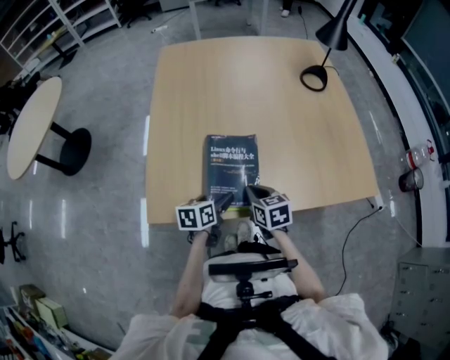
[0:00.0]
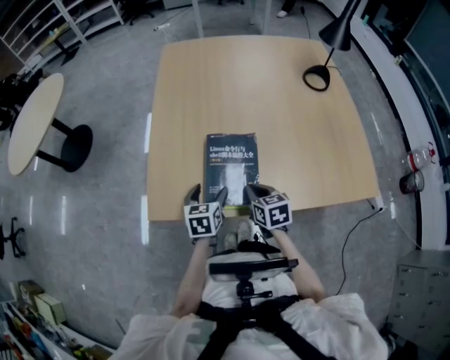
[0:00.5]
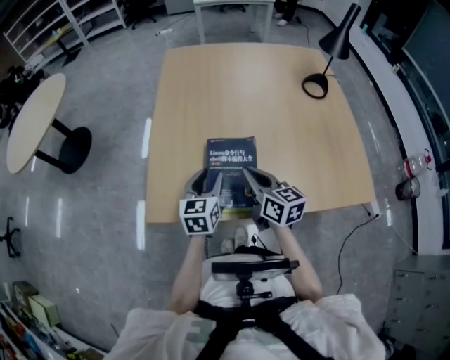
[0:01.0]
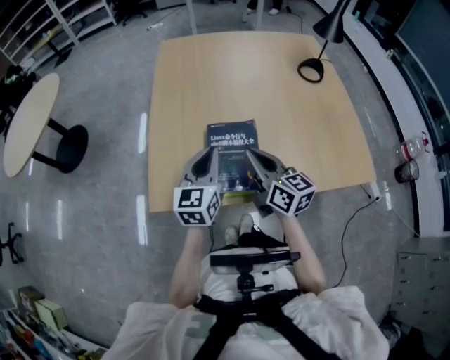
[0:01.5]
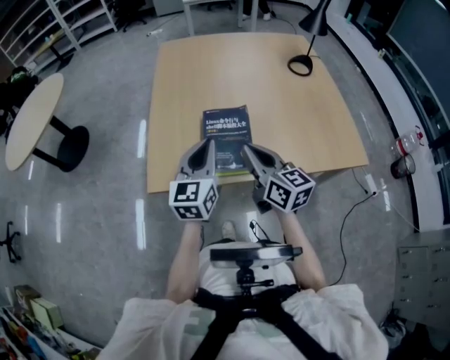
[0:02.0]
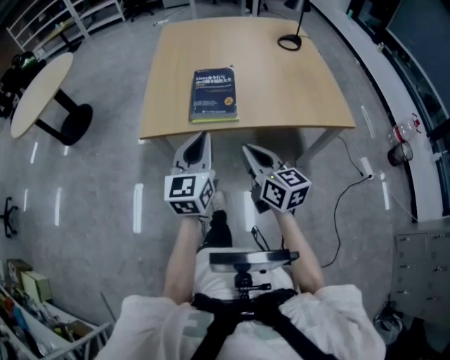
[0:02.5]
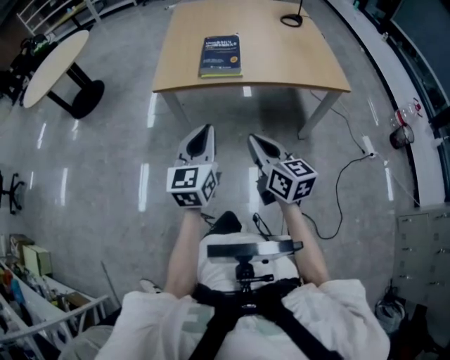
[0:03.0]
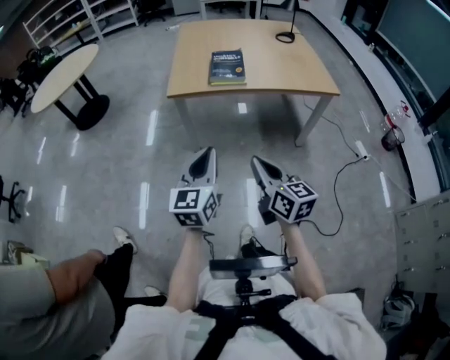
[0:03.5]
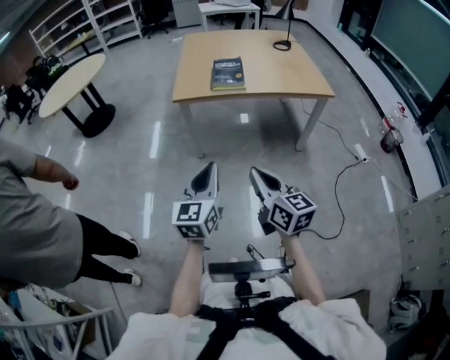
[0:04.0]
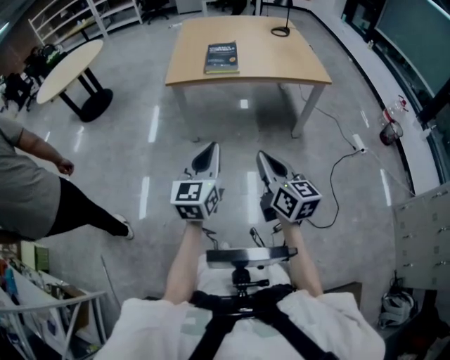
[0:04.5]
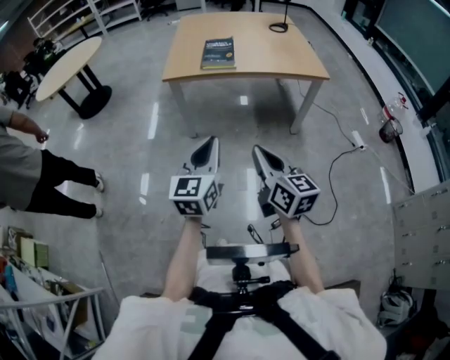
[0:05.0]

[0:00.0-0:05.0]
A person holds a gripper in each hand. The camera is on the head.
0:00.0 to 0:02.5: The grippers both shift backward and upward by approximately 35 cm. The right gripper points its fingers roughly 30 degrees further upward. The left gripper tips its fingers upward by approximately 30 degrees, and closes its fingers.
0:02.5 to 0:05.0: The pair of grippers is taken backward, about 40 cm.

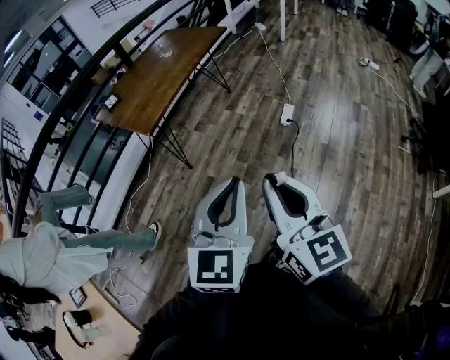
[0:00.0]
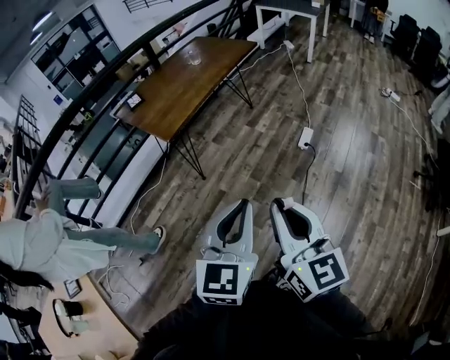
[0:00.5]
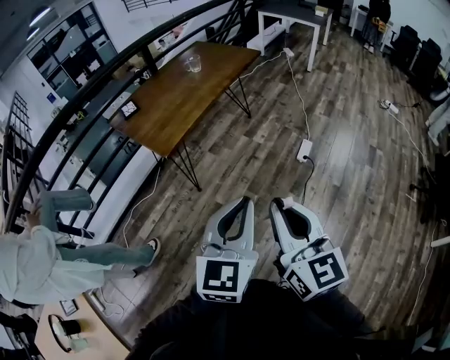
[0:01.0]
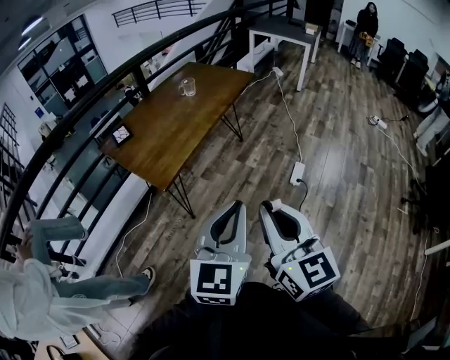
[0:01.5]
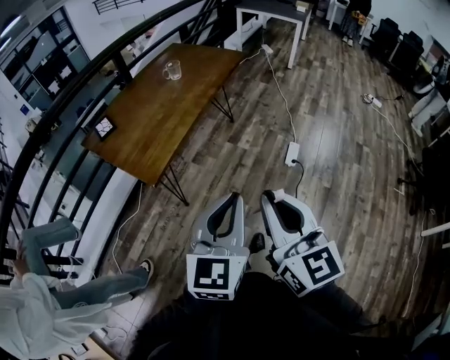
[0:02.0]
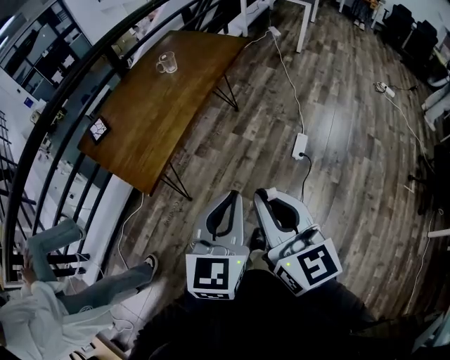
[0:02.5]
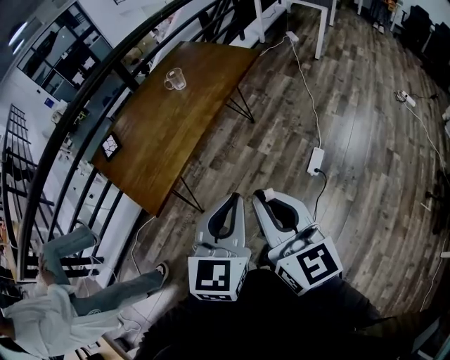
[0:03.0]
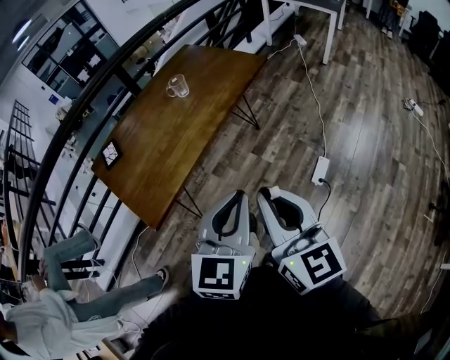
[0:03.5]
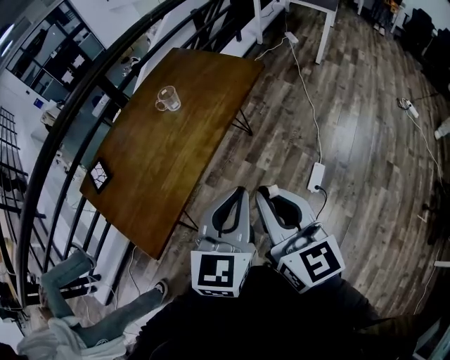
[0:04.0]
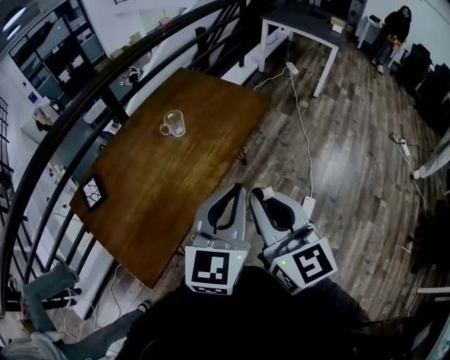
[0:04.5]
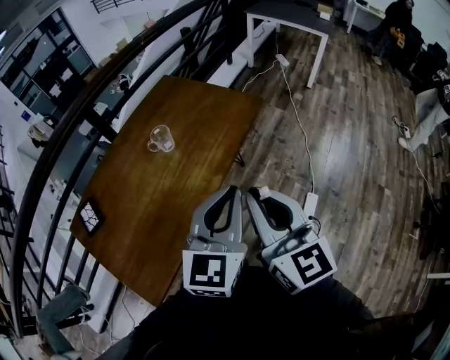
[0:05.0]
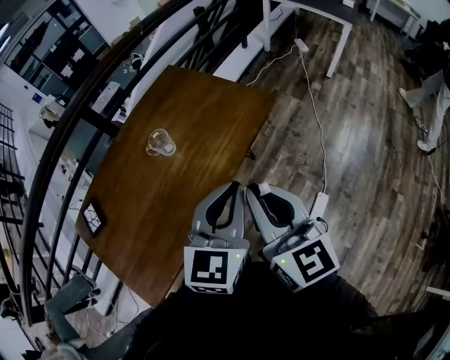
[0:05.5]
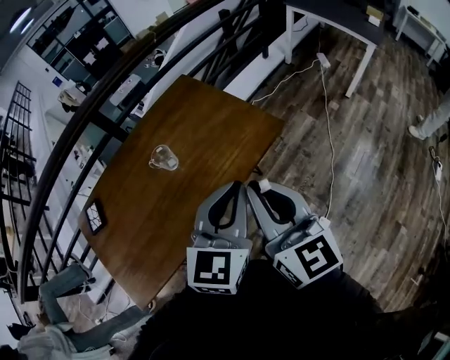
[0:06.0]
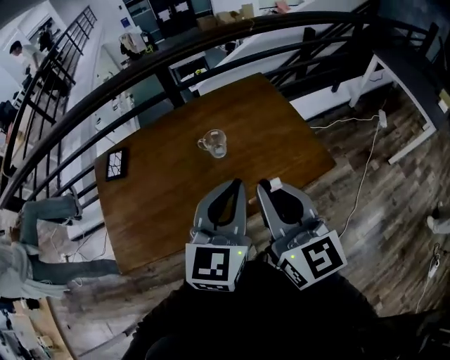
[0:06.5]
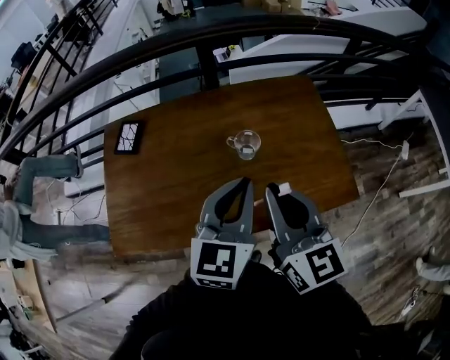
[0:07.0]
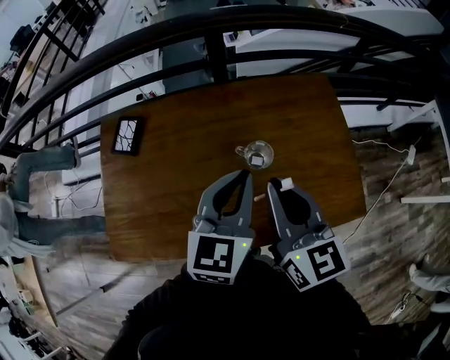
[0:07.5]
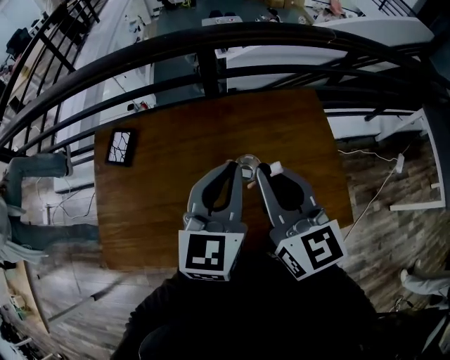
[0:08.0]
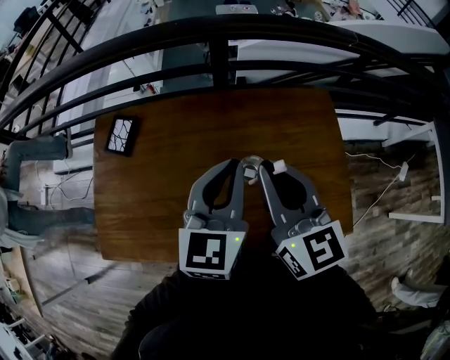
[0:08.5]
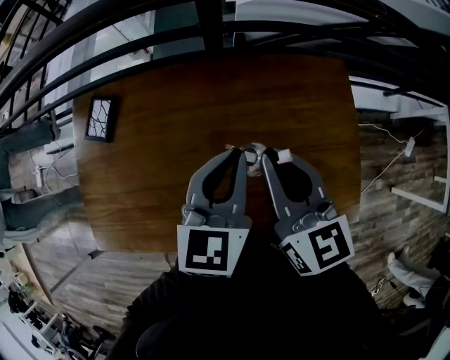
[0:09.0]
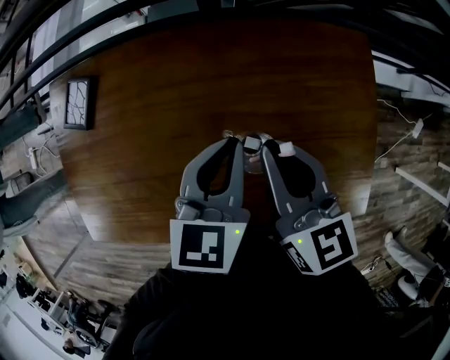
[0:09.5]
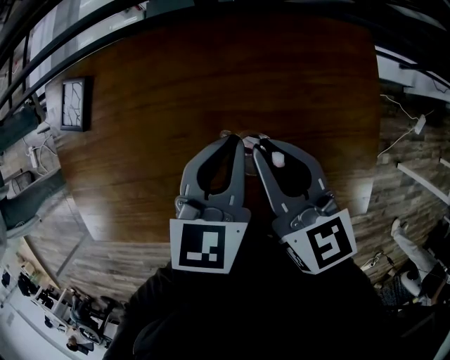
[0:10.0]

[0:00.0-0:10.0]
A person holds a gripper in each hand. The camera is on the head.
0:00.0 to 0:02.0: Both grippers move forward, roughly 25 cm.
0:02.0 to 0:04.0: The two grippers go roughly 35 cm forward.
0:04.0 to 0:06.0: The two grippers go approximately 35 cm forward.
0:06.0 to 0:08.0: The right gripper changes place by roughly 35 cm, and changes its angle by roughly 40 degrees. Meanwhile the left gripper moves about 35 cm, and rotates approximately 40 degrees.
0:08.0 to 0:10.0: Both grippers move downward and forward, some 20 cm. The left gripper turns by about 30 degrees. The right gripper turns by some 20 degrees.

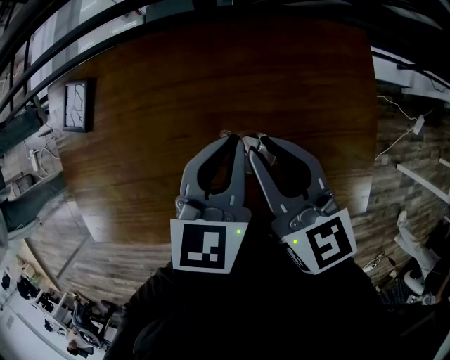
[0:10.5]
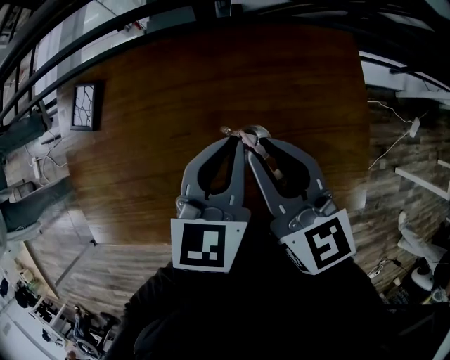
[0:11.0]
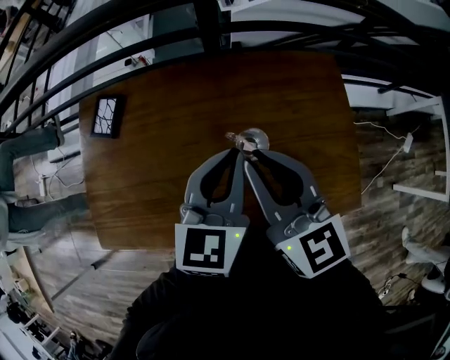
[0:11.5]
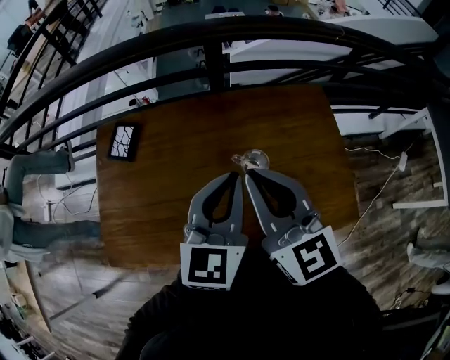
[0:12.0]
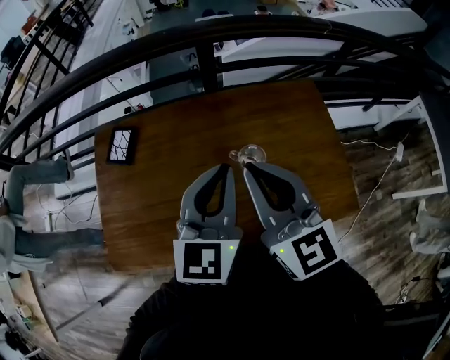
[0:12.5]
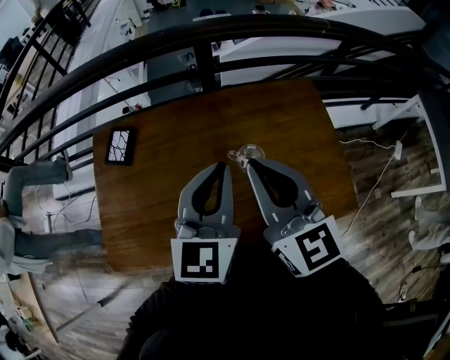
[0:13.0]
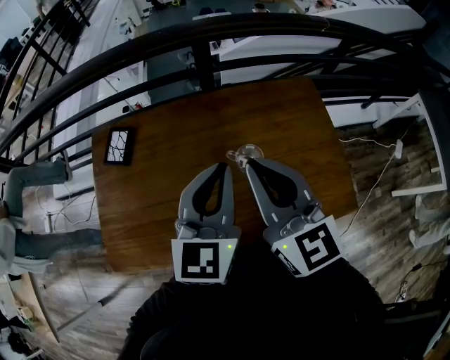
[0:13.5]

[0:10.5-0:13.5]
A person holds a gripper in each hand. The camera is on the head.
0:10.5 to 0:12.0: The left gripper goes some 20 cm upward and backward, and rotates some 20 degrees; the right gripper is displaced upward, backward and to the left by approximately 20 cm, and rotates about 20 degrees.
0:12.0 to 0:13.5: The grippers stay close to where they were, moving slightly.

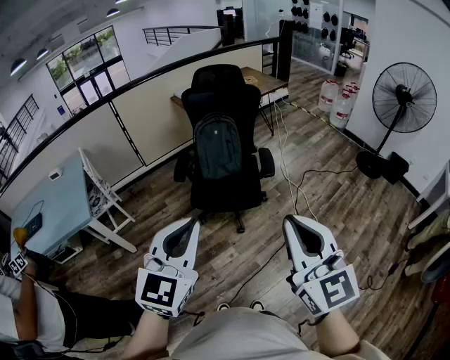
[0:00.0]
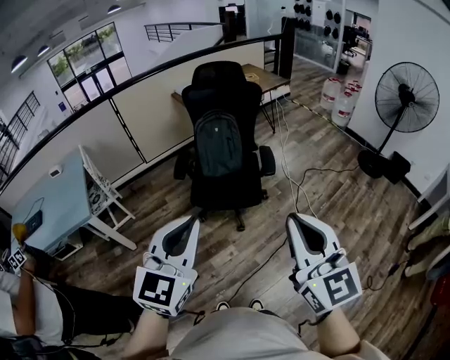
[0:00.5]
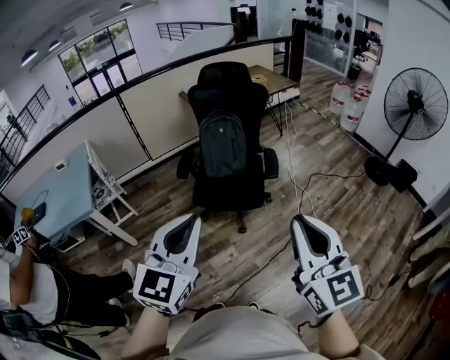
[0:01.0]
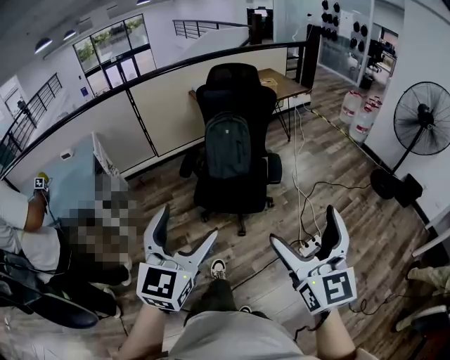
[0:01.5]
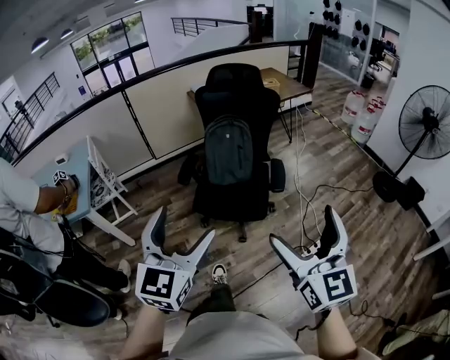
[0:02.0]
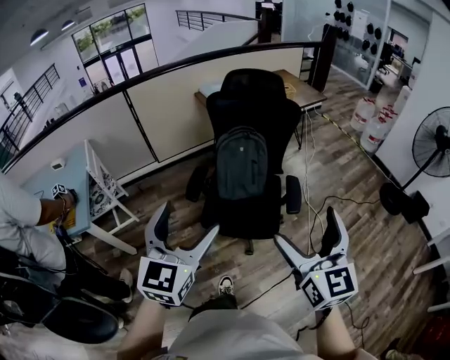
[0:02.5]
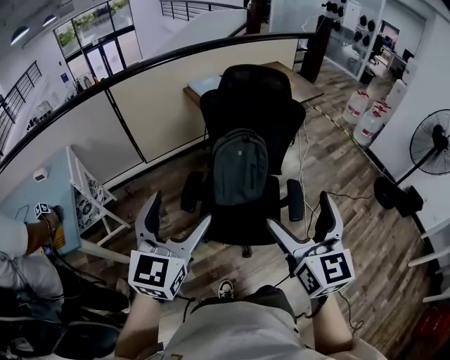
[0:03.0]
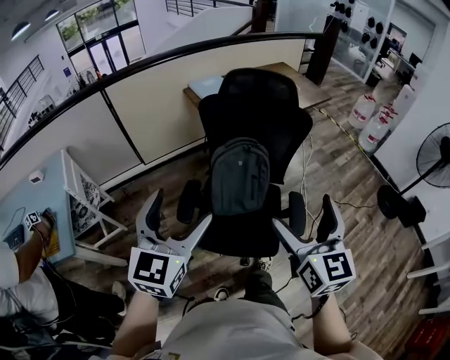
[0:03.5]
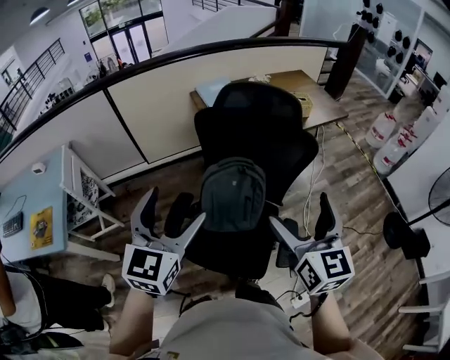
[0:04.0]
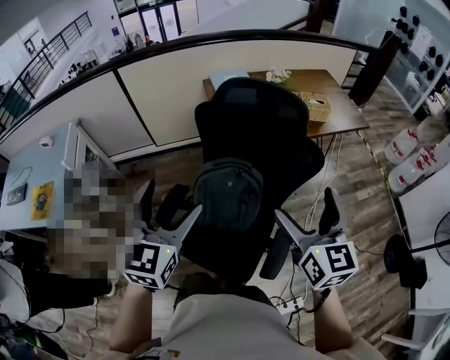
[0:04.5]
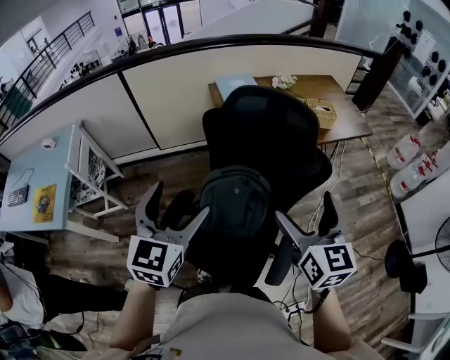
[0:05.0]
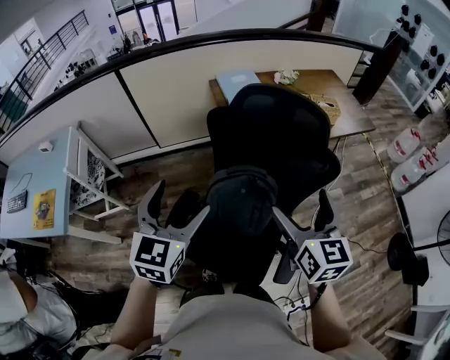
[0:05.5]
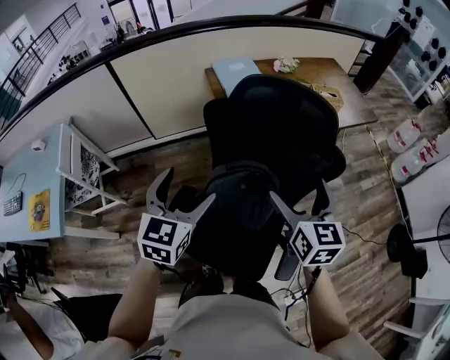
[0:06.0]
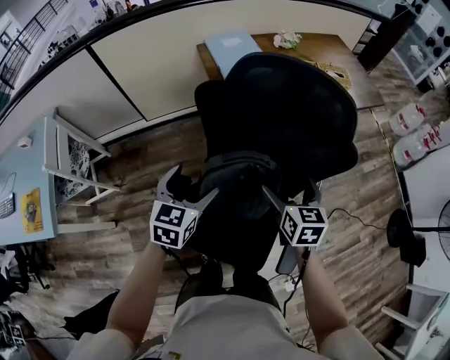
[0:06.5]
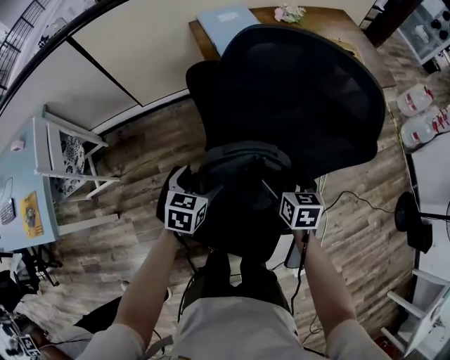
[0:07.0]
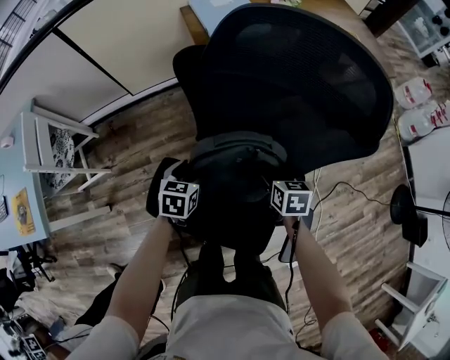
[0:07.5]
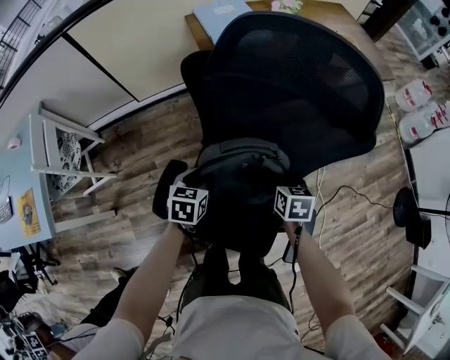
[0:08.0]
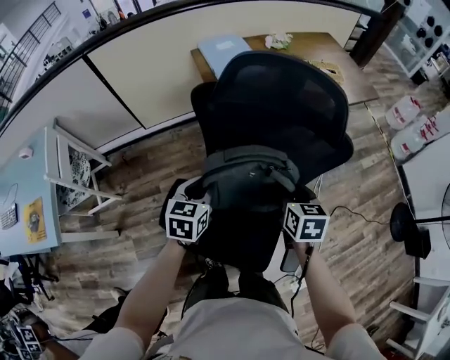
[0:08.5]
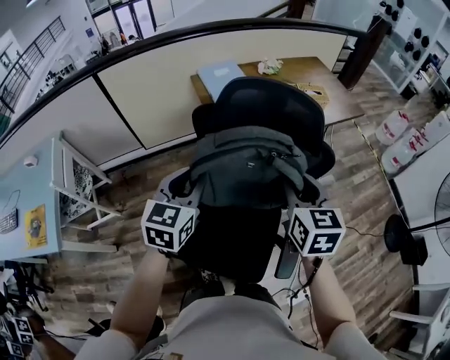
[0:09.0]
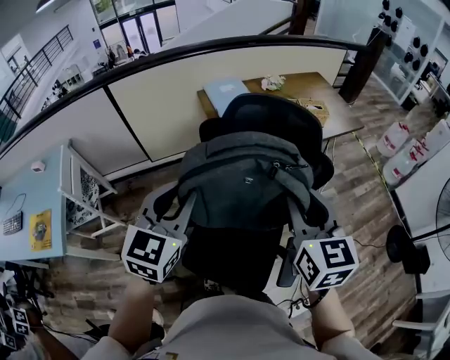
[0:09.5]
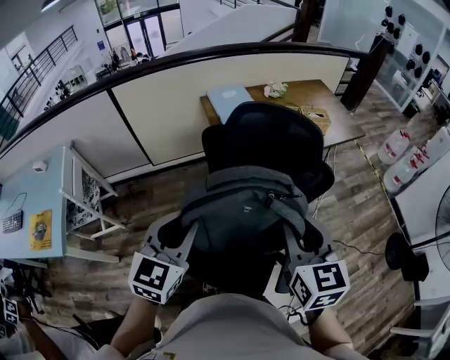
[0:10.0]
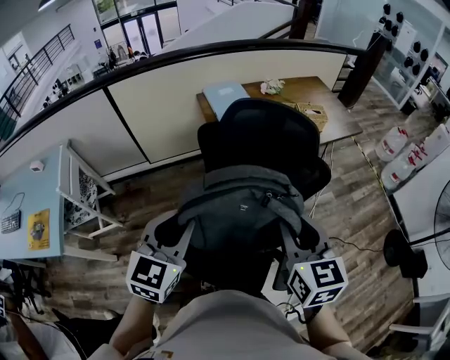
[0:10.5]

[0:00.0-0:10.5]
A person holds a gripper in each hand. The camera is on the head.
0:00.0 to 0:02.0: The right gripper is displaced forward and to the right by roughly 15 cm, and opens its fingers; the left gripper travels forward by roughly 10 cm, and opens up.
0:02.0 to 0:04.0: The two grippers travel together, forward, some 50 cm.
0:04.0 to 0:06.5: The grippers both shift downward and forward by some 35 cm. The left gripper swivels about 20 degrees. The right gripper turns by approximately 30 degrees.
0:06.5 to 0:08.5: The right gripper moves roughly 20 cm downward and comes back, and closes, while the left gripper moves some 20 cm downward and comes back, and closes up.
0:08.5 to 0:10.5: The two grippers go approximately 25 cm upward and backward. The right gripper swivels some 20 degrees; the left gripper rotates some 20 degrees.
